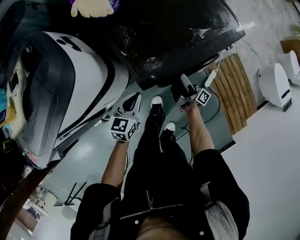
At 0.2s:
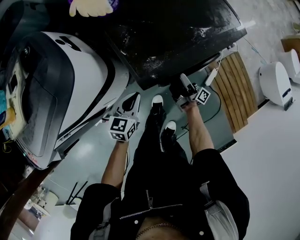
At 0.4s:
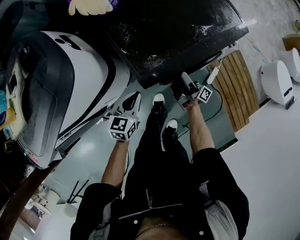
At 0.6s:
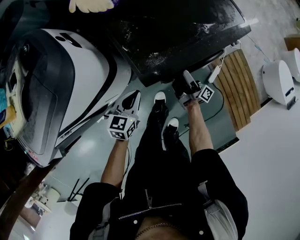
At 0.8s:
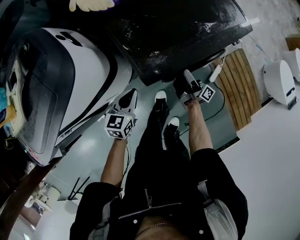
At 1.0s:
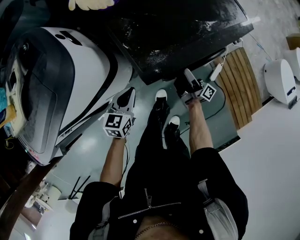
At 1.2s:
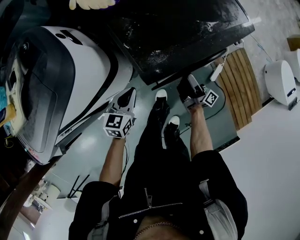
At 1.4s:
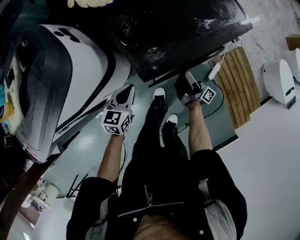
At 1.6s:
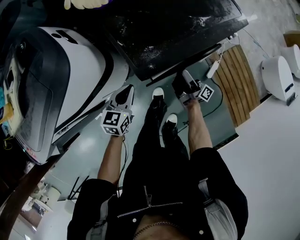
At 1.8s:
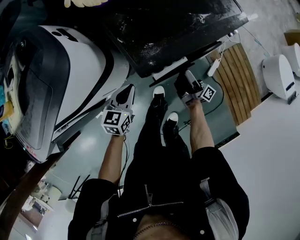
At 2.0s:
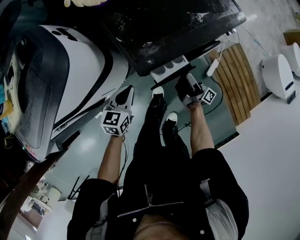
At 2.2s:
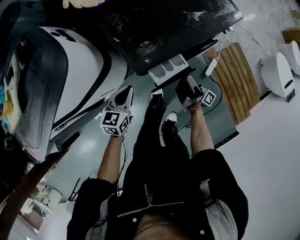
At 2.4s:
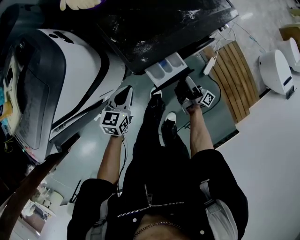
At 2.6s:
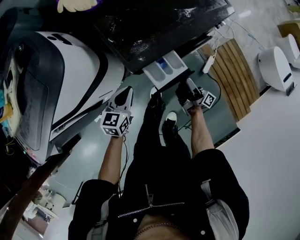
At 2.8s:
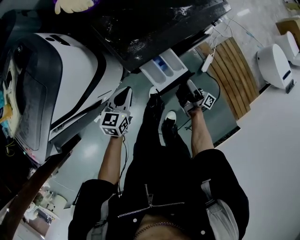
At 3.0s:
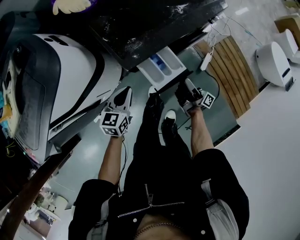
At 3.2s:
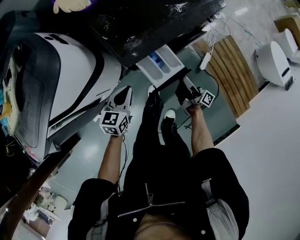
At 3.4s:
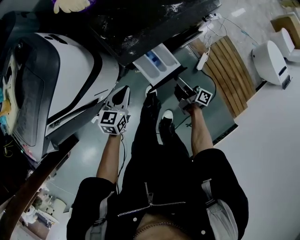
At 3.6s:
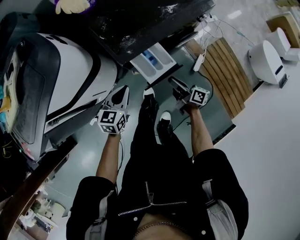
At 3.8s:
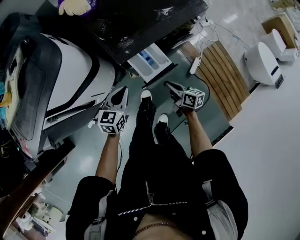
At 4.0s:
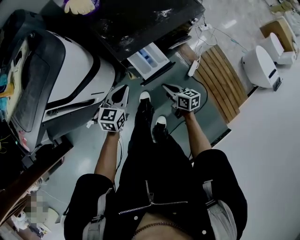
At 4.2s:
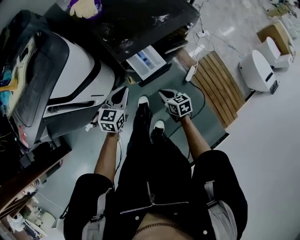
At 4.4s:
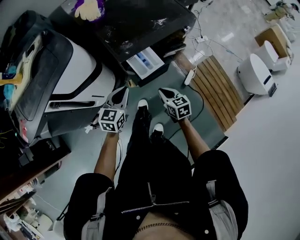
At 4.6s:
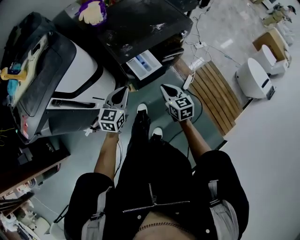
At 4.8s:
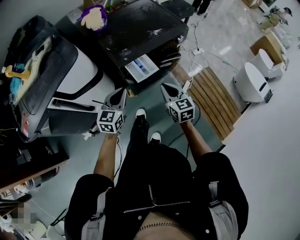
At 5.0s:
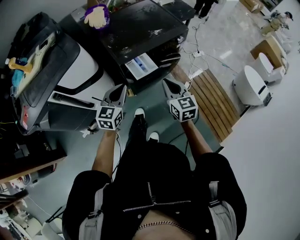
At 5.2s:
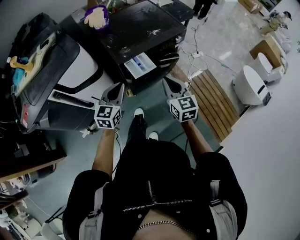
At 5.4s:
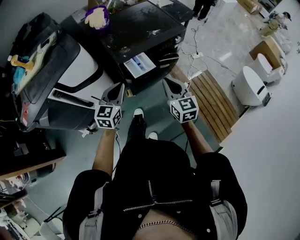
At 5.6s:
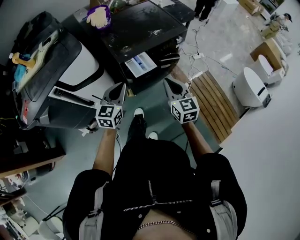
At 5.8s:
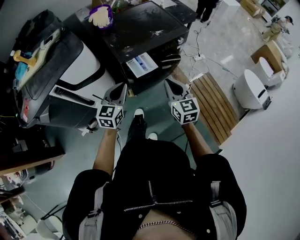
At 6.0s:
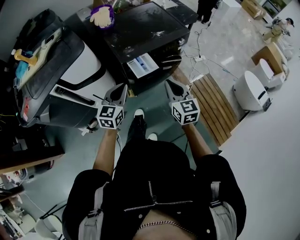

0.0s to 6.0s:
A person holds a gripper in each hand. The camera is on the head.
0.0s to 1.6s: The grippers move only a little.
1.6s to 3.0s: The left gripper moves approximately 5 cm; the right gripper moves backward and to the right, approximately 10 cm.
3.0s to 4.4s: The left gripper goes approximately 15 cm upward and backward. The right gripper moves backward, upward and to the left, approximately 15 cm, tilts its fingers roughly 50 degrees downward, and closes up.
4.4s to 6.0s: The right gripper moves upward, about 20 cm, and turns by approximately 30 degrees. The left gripper shifts about 10 cm upward and backward.

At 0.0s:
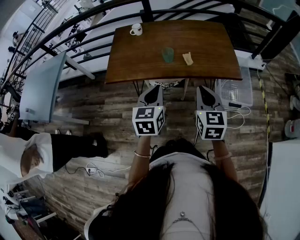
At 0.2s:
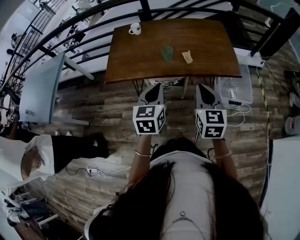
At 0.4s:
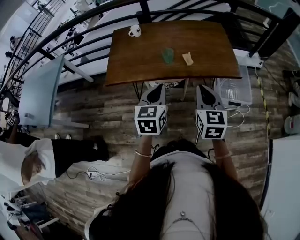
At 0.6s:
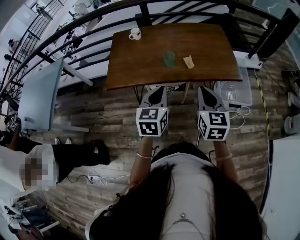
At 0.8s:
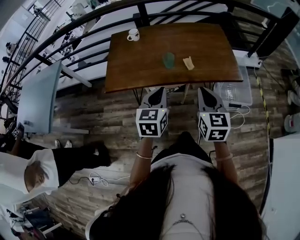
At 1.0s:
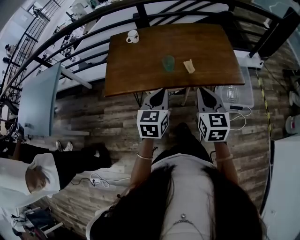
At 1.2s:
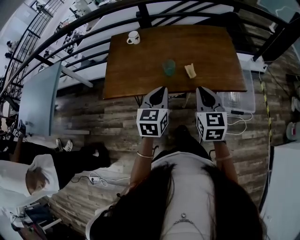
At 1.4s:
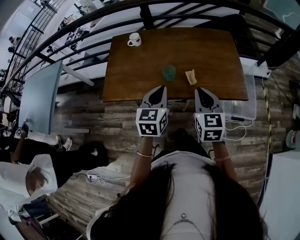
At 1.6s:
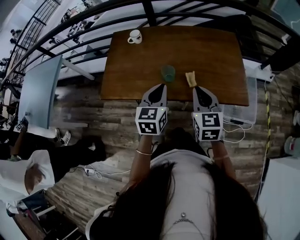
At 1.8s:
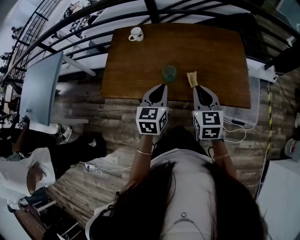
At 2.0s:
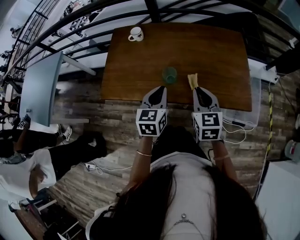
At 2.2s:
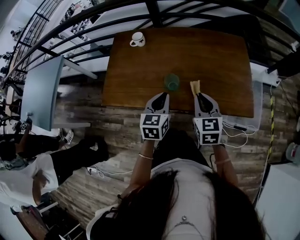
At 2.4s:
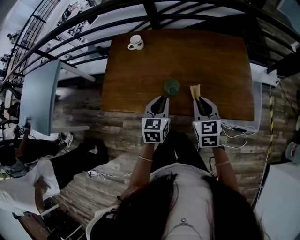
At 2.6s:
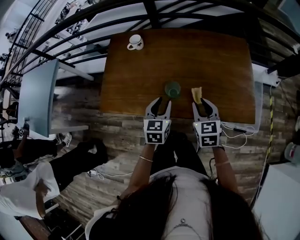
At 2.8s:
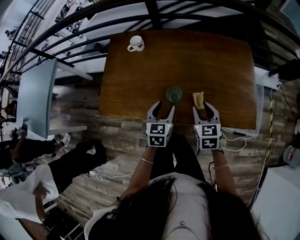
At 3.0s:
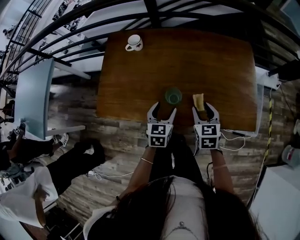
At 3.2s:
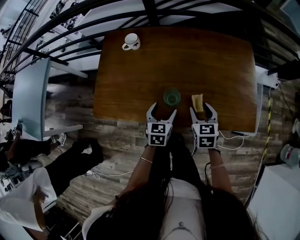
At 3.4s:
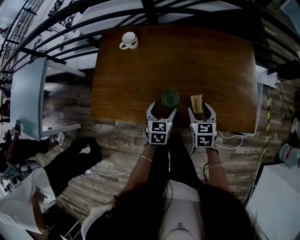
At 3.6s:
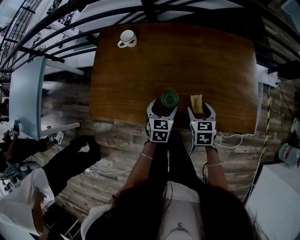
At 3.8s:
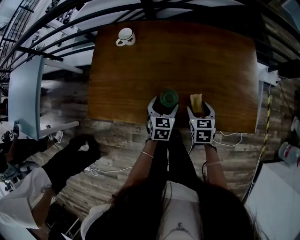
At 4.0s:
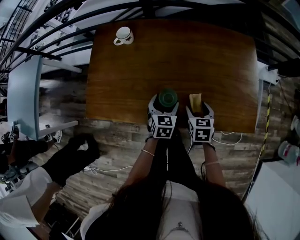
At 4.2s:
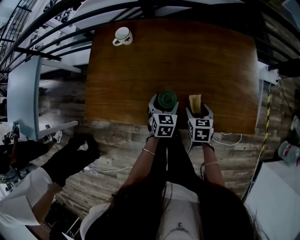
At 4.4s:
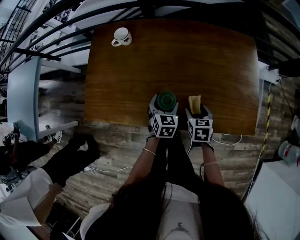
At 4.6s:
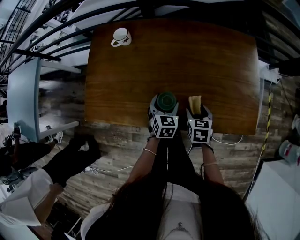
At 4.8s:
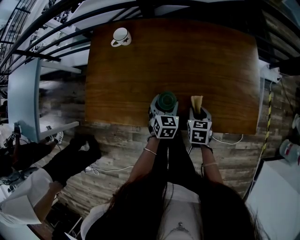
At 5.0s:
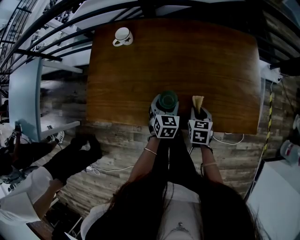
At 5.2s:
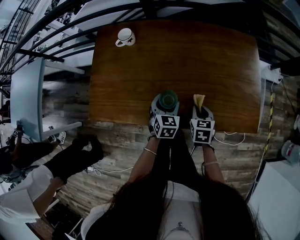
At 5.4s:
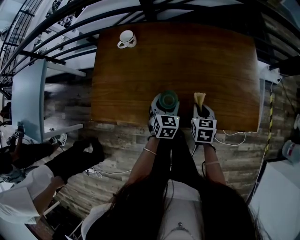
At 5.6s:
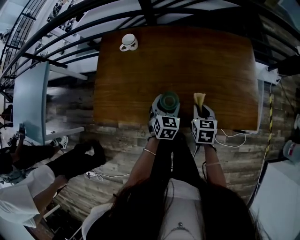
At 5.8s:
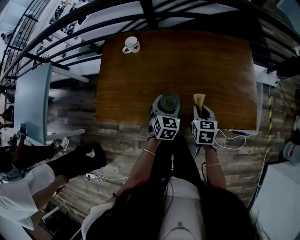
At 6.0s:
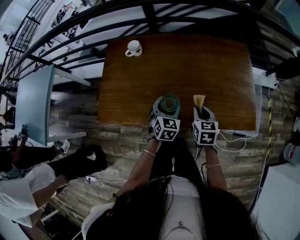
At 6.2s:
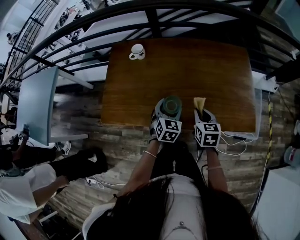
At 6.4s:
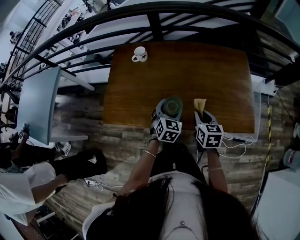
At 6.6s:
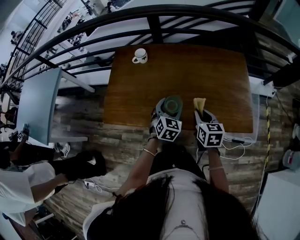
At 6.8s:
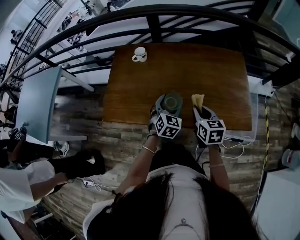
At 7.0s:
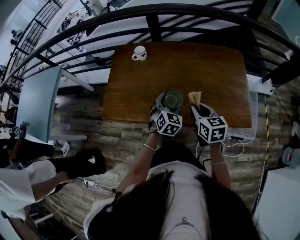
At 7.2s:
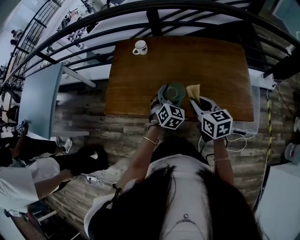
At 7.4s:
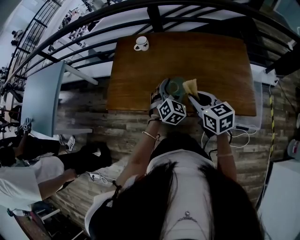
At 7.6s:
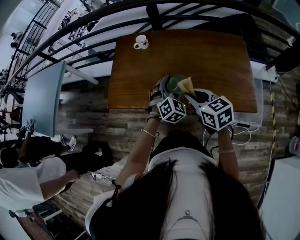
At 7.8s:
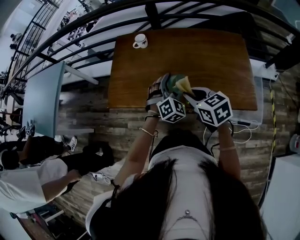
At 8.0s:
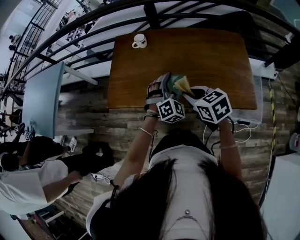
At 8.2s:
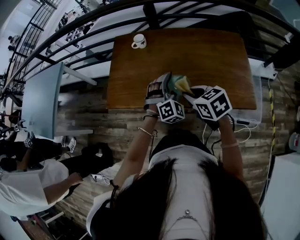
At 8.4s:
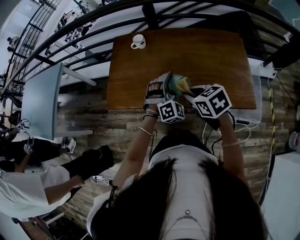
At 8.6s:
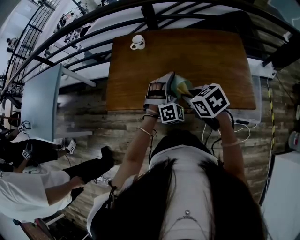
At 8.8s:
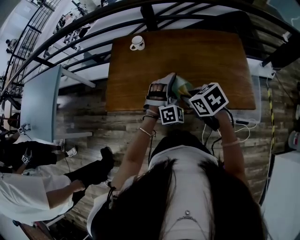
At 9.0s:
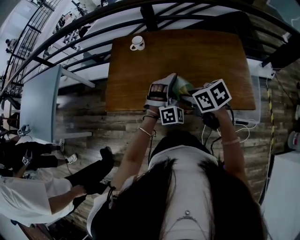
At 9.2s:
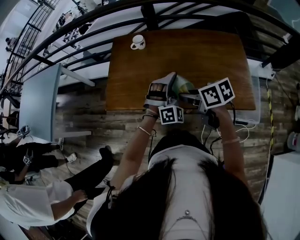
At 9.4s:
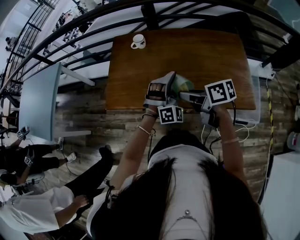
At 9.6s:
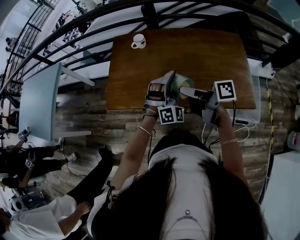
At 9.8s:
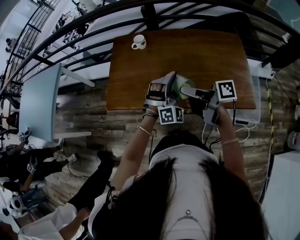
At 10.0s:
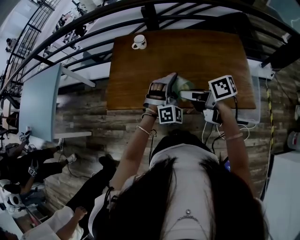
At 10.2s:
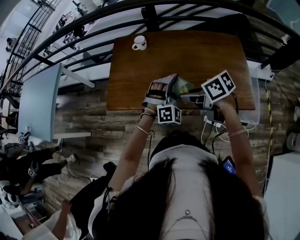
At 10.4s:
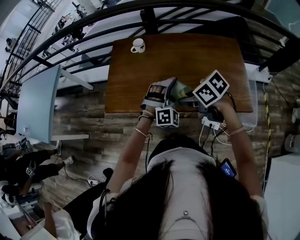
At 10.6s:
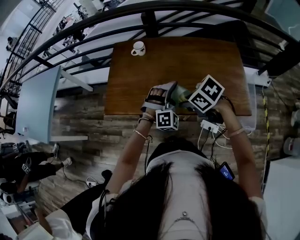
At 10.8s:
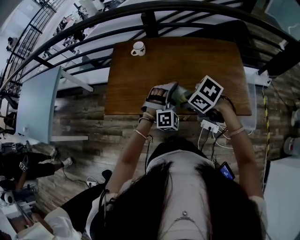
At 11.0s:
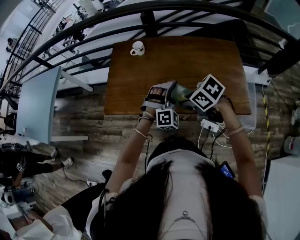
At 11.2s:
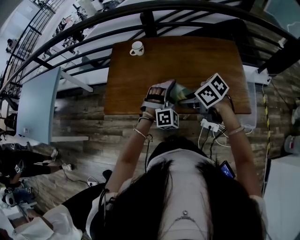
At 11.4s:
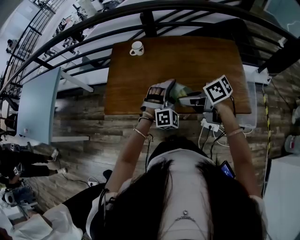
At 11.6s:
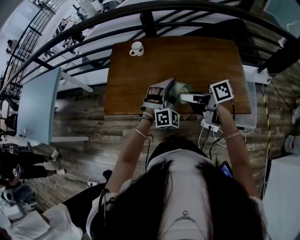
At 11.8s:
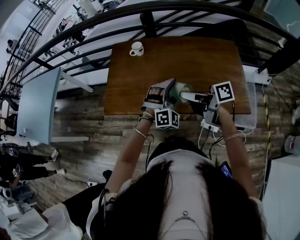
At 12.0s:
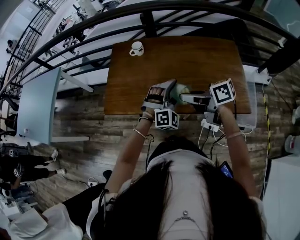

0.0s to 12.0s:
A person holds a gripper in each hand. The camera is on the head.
0.0s to 1.6s: The two grippers go some 25 cm forward.
1.6s to 3.0s: Both grippers travel together downward and forward, approximately 20 cm. The left gripper opens its fingers. The right gripper opens up.
3.0s to 4.4s: The left gripper shifts about 10 cm downward and forward; the right gripper goes about 15 cm downward.
4.4s to 6.0s: Both grippers move upward, about 10 cm. The right gripper closes.
6.0s to 7.6s: The left gripper is displaced upward by roughly 10 cm, and turns by approximately 30 degrees, while the right gripper moves upward, to the left and backward, approximately 20 cm, and rotates some 30 degrees.
7.6s to 9.0s: The left gripper swivels approximately 30 degrees; the right gripper swivels approximately 20 degrees.
10.4s to 12.0s: The right gripper turns by about 30 degrees.

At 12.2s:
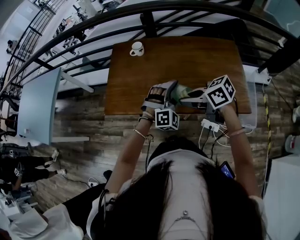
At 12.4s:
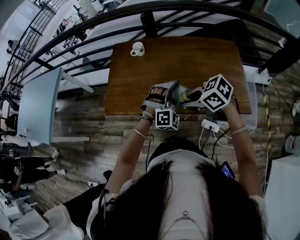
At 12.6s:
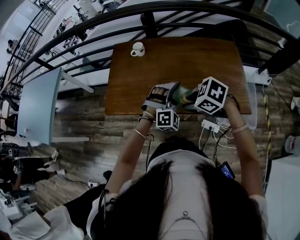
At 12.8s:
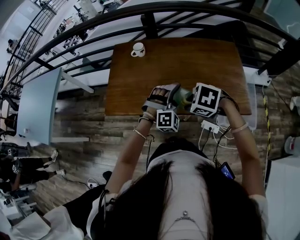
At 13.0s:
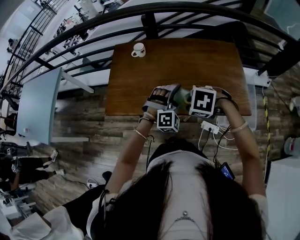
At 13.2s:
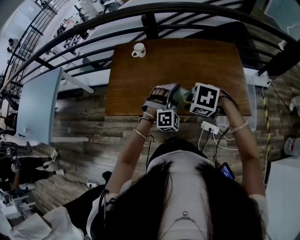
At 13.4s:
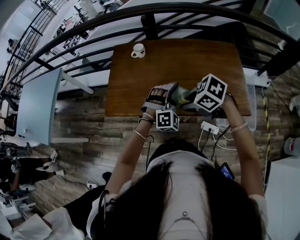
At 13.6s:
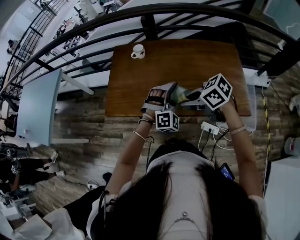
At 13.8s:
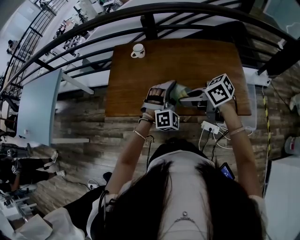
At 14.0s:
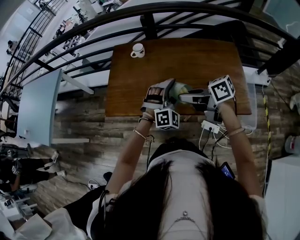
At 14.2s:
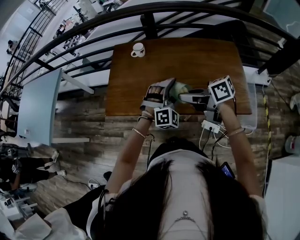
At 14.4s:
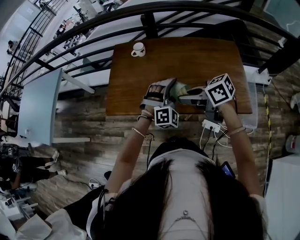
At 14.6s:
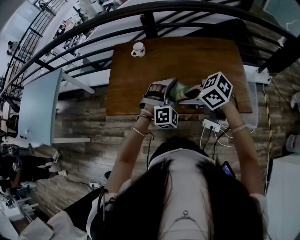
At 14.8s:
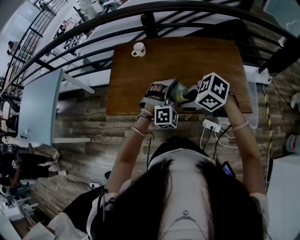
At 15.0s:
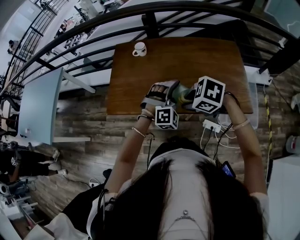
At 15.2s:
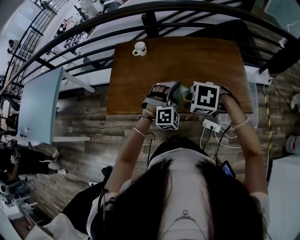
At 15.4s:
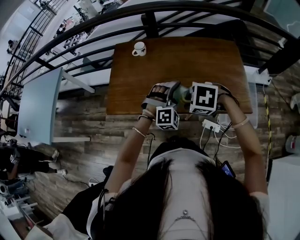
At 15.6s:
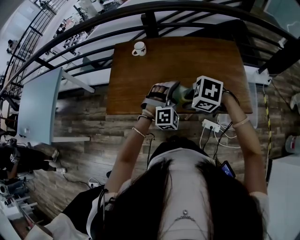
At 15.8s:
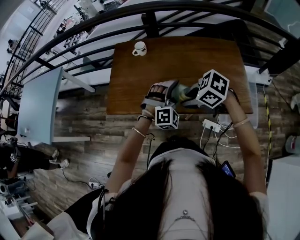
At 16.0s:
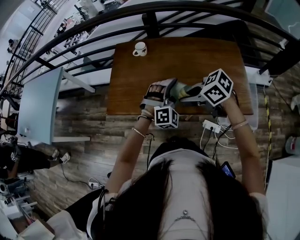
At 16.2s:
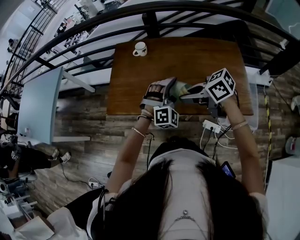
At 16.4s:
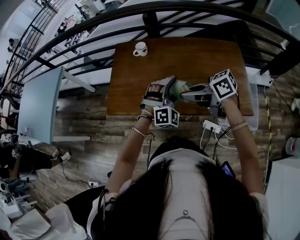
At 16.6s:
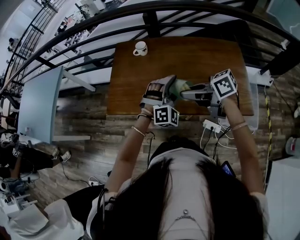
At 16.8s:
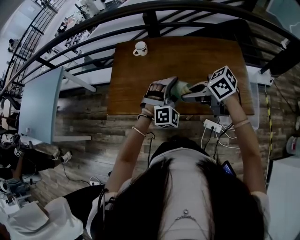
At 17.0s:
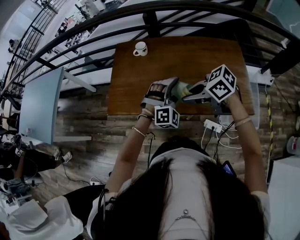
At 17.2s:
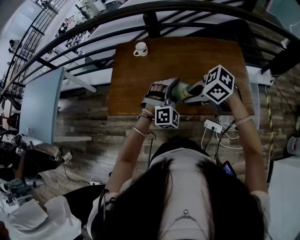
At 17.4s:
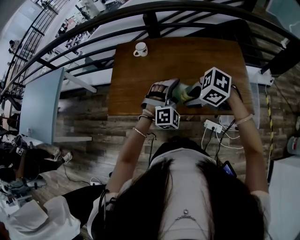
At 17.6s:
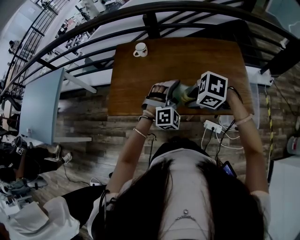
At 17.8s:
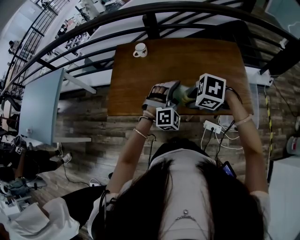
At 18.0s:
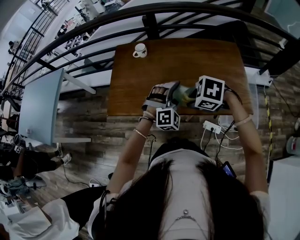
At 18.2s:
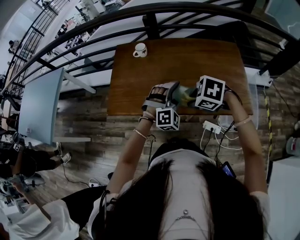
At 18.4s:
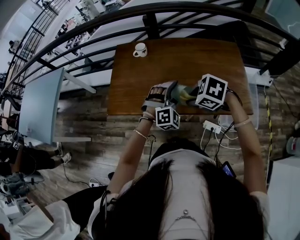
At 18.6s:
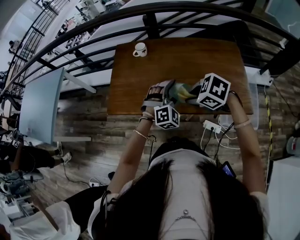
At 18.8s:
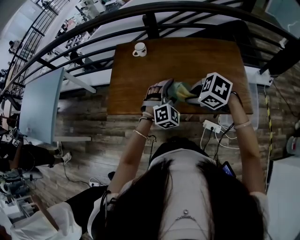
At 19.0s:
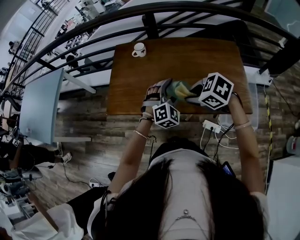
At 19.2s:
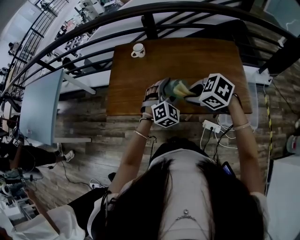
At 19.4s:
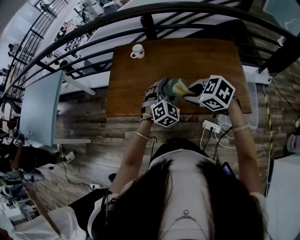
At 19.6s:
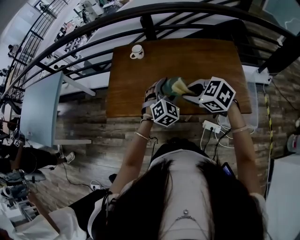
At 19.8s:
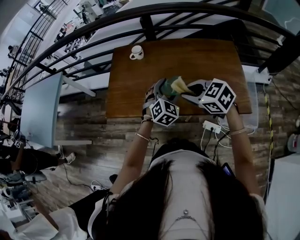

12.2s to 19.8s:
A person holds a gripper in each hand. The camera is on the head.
13.8s to 15.2s: The right gripper points its fingers about 50 degrees further downward.
15.2s to 16.8s: The right gripper changes place by about 5 cm, and points its fingers about 40 degrees further upward.
16.8s to 18.2s: The right gripper ends up roughly 5 cm from where it was, and points its fingers about 40 degrees further downward.
18.2s to 19.8s: The left gripper swivels about 30 degrees; the right gripper ends up some 5 cm from where it was, and swivels some 30 degrees.
